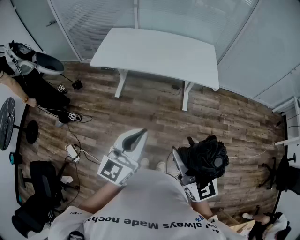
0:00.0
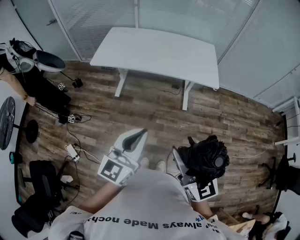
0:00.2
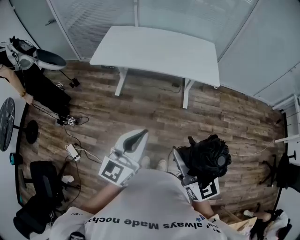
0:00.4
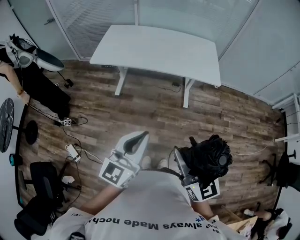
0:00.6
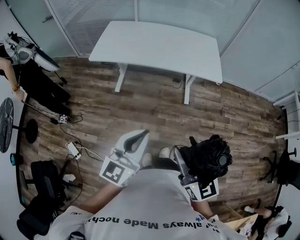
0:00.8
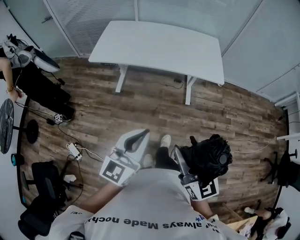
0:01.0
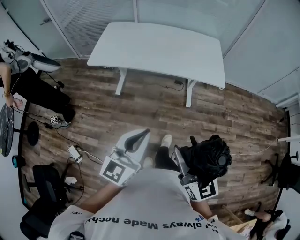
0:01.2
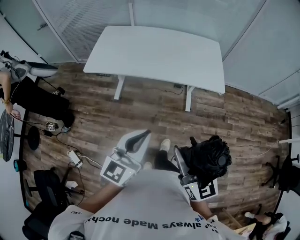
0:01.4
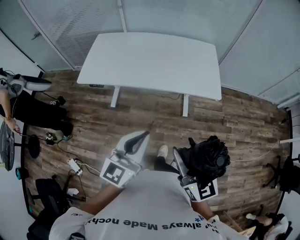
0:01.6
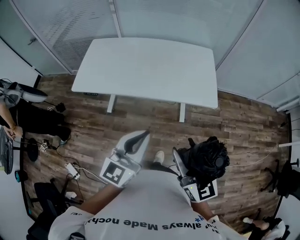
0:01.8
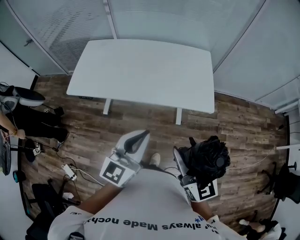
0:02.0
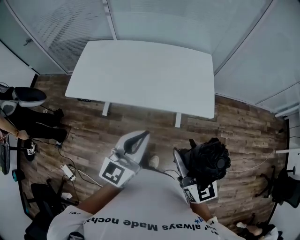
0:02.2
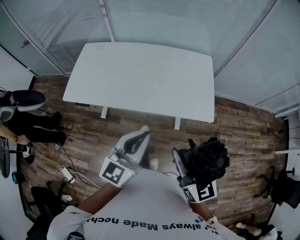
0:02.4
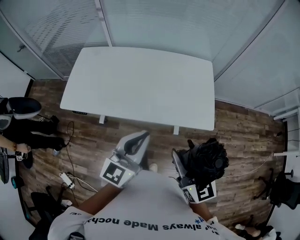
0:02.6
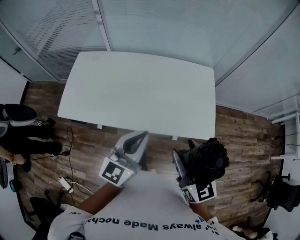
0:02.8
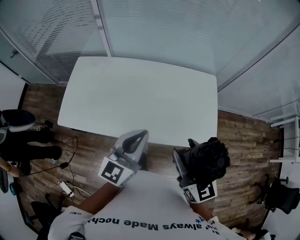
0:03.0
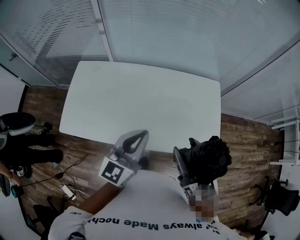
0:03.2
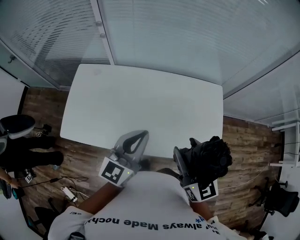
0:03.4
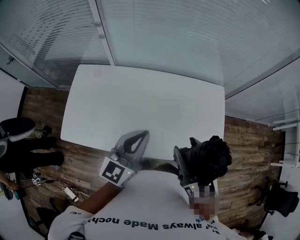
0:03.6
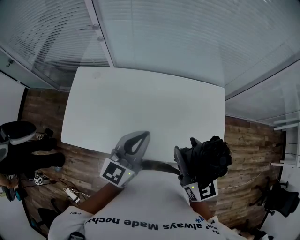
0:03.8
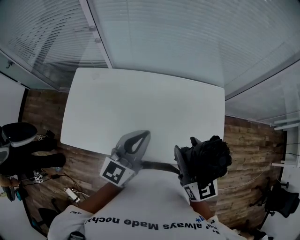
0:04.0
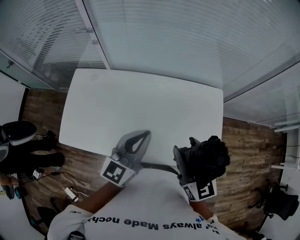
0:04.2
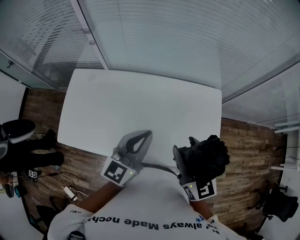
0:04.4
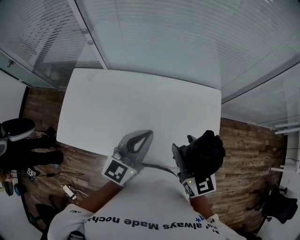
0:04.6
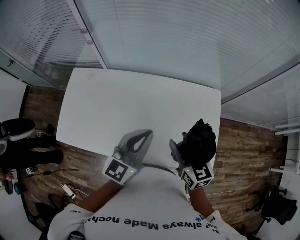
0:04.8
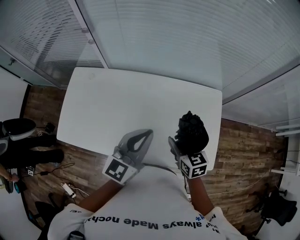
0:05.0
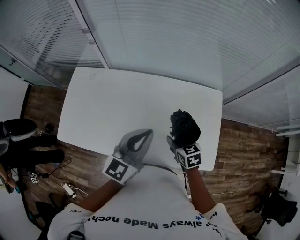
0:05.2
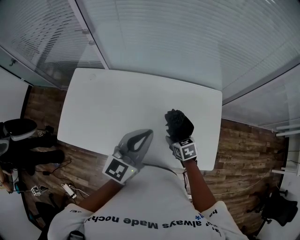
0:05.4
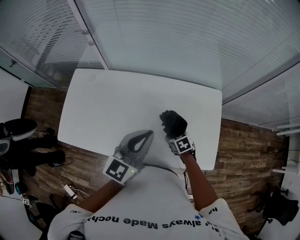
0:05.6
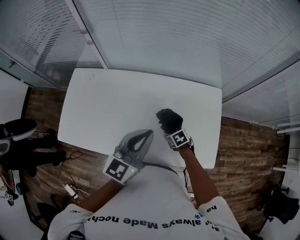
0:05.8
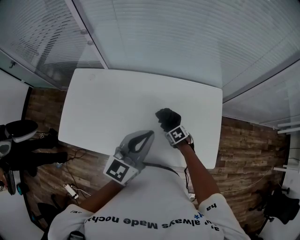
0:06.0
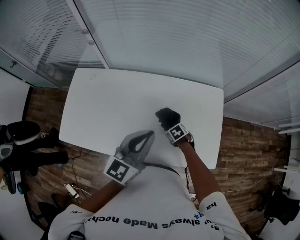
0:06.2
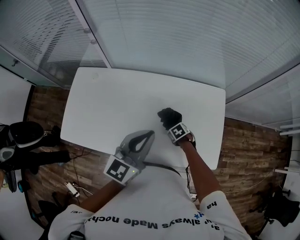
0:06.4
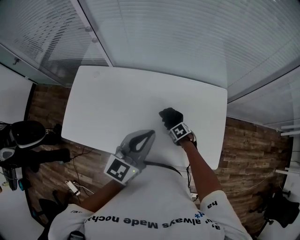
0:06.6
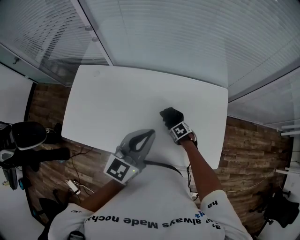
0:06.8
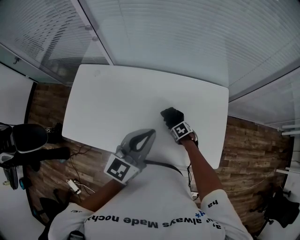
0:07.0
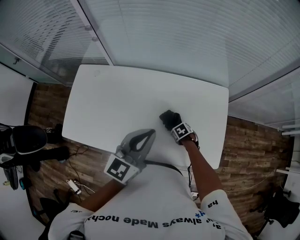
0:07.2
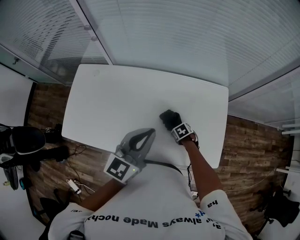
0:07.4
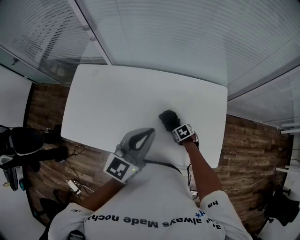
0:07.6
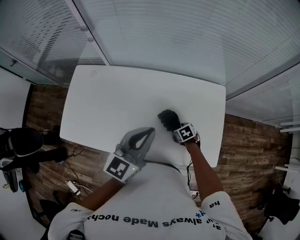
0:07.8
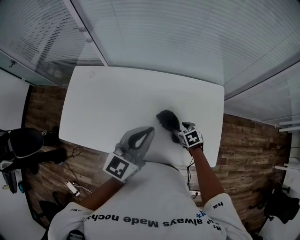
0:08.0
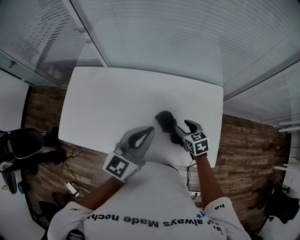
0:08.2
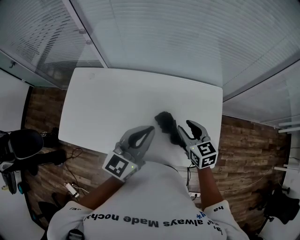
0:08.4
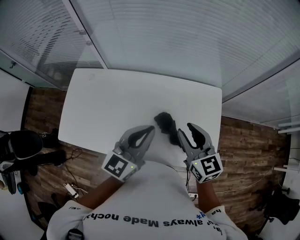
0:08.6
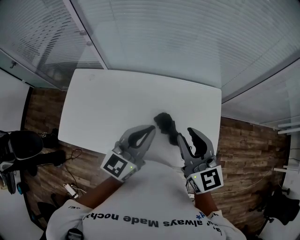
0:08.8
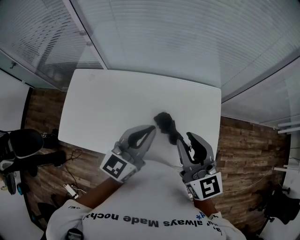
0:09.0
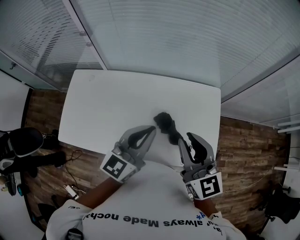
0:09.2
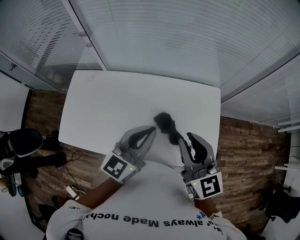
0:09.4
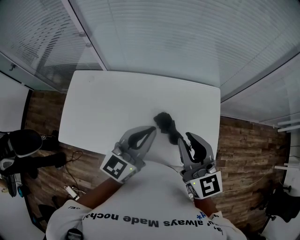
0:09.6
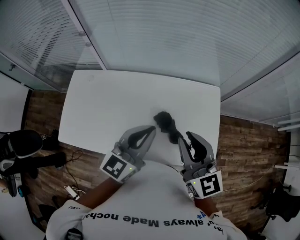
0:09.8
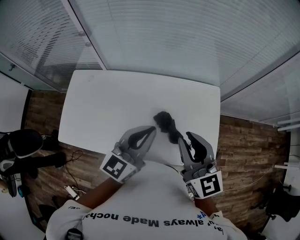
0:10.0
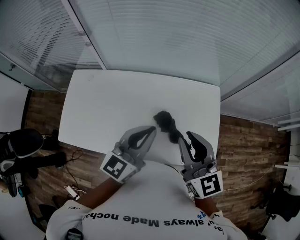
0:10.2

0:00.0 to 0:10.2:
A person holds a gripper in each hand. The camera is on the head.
0:00.0 to 0:01.4: Both grippers move forward, some 15 cm.
0:01.4 to 0:03.0: Both grippers are carried forward, roughly 50 cm.
0:03.0 to 0:04.4: Both grippers move forward, about 20 cm.
0:04.4 to 0:05.8: The right gripper moves downward, some 35 cm, and tilts its fingers roughly 60 degrees downward.
0:05.8 to 0:07.2: The right gripper is displaced downward by some 5 cm.
0:07.2 to 0:08.8: The right gripper is displaced upward by some 40 cm, tilts its fingers some 70 degrees upward, and closes its fingers.
0:08.8 to 0:10.2: The grippers stay close to where they were, moving slightly.

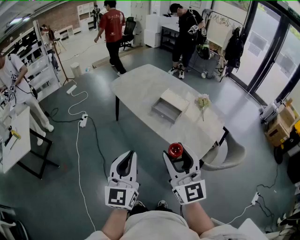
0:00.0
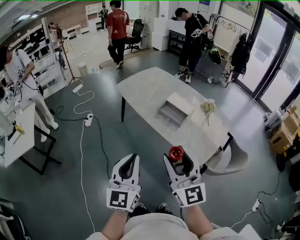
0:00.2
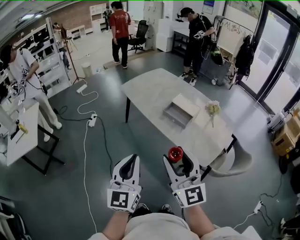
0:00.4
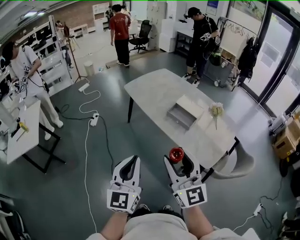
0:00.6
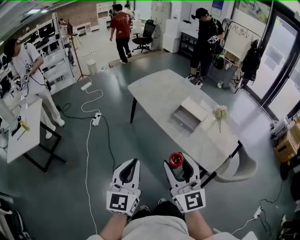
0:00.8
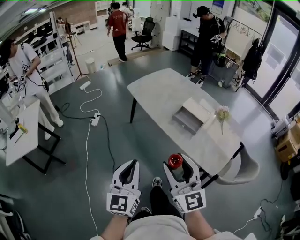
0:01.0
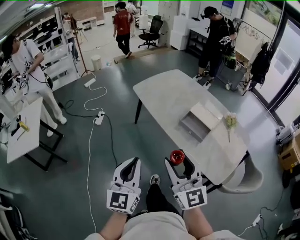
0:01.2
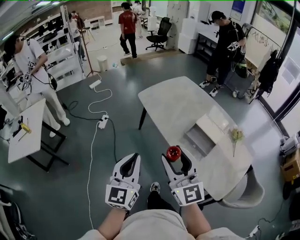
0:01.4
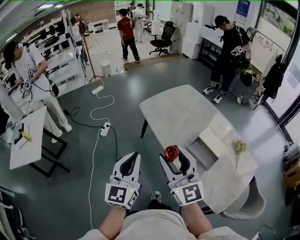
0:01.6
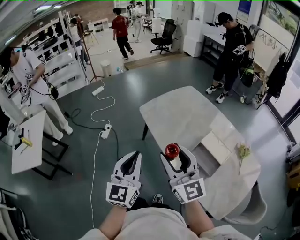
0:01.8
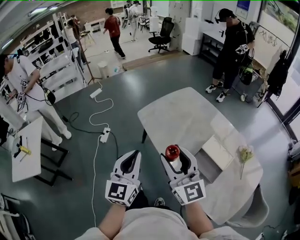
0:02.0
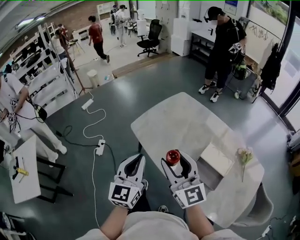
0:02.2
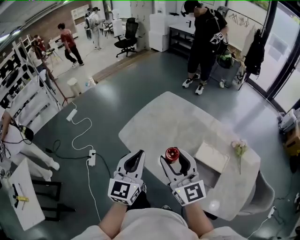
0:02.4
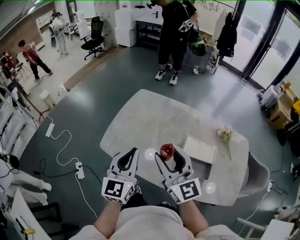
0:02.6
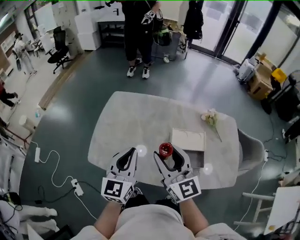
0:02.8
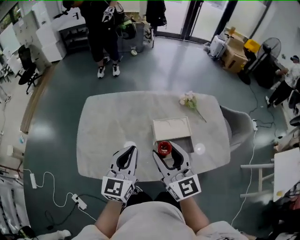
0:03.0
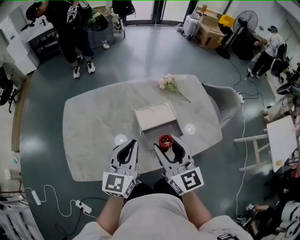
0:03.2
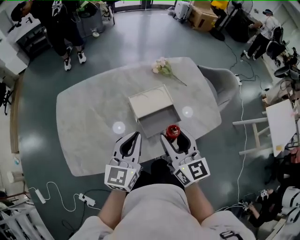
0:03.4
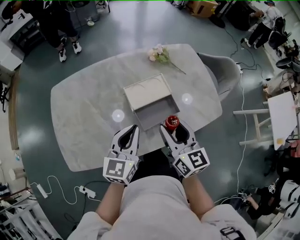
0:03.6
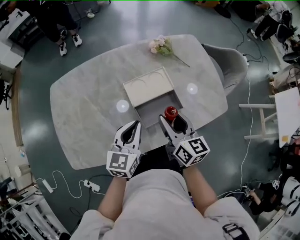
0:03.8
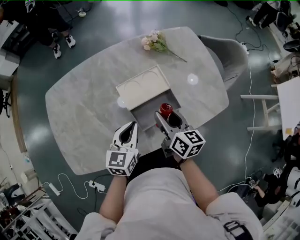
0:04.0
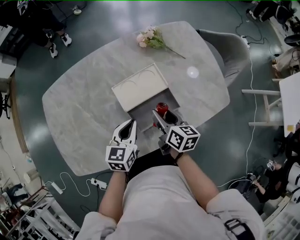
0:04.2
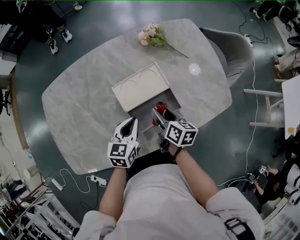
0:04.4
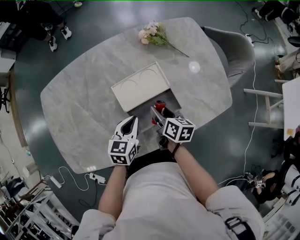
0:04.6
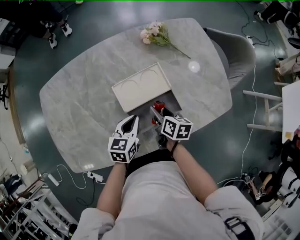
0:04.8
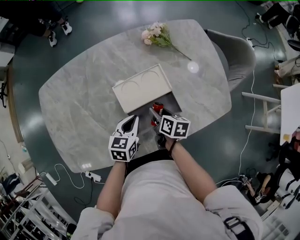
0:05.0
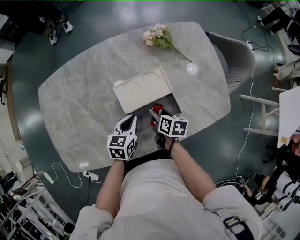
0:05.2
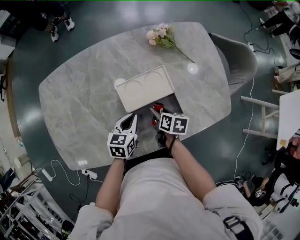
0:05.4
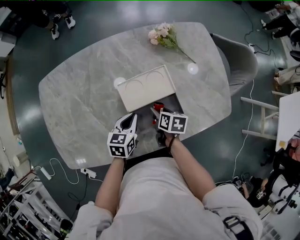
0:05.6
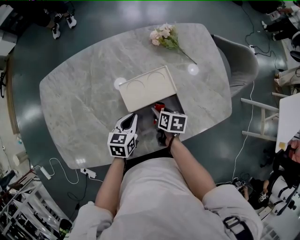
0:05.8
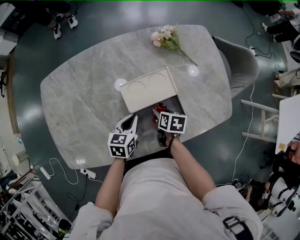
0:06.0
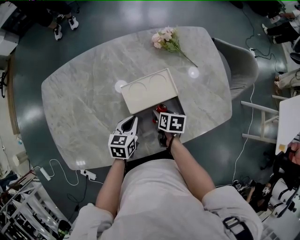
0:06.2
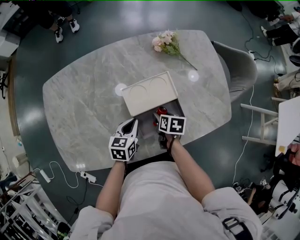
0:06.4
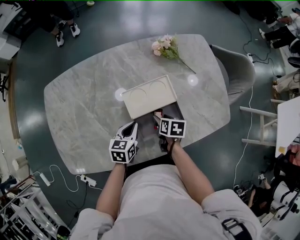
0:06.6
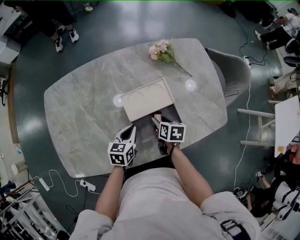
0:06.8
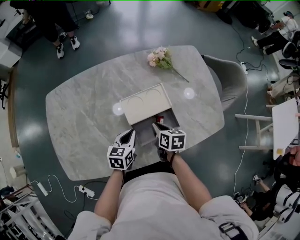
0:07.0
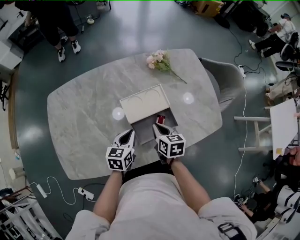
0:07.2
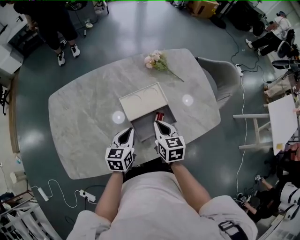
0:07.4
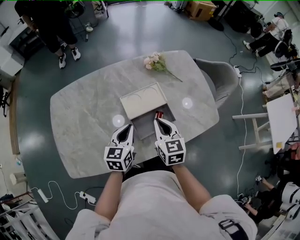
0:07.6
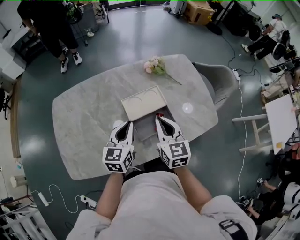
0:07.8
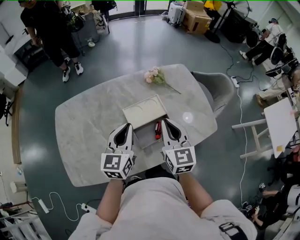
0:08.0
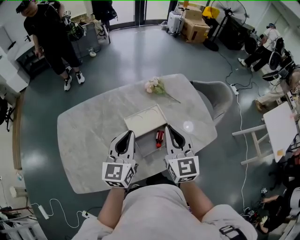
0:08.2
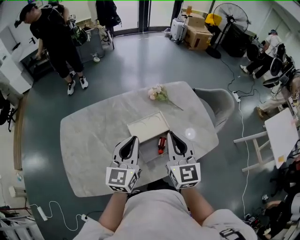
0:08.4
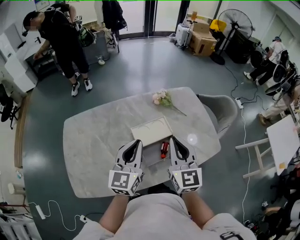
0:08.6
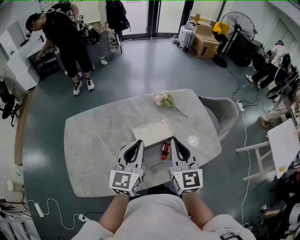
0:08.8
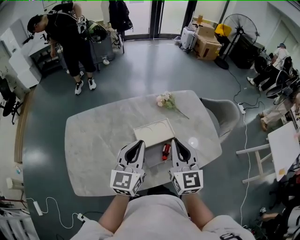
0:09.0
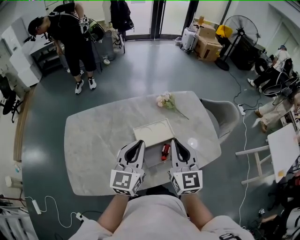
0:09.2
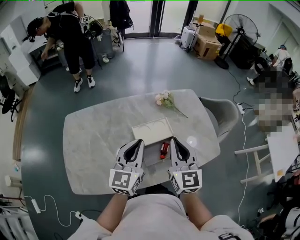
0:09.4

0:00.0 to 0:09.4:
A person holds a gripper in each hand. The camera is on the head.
0:00.0 to 0:01.6: The grippers both shift forward by approximately 30 cm.
0:01.6 to 0:03.2: The right gripper moves approximately 30 cm, and changes its angle by approximately 70 degrees, while the left gripper changes place by about 40 cm, and changes its angle by some 80 degrees.
0:03.2 to 0:04.8: Both grippers travel together downward, some 30 cm. The right gripper points its fingers some 40 degrees further downward. Meanwhile the left gripper angles its fingers downward, by about 30 degrees.
0:04.8 to 0:06.2: The right gripper ends up approximately 5 cm from where it was, and rotates roughly 20 degrees.
0:06.2 to 0:07.8: Both grippers move upward, some 25 cm. The right gripper points its fingers about 40 degrees further upward, and closes its fingers. Meanwhile the left gripper changes its angle by roughly 30 degrees.
0:07.8 to 0:09.4: Both grippers move upward, approximately 10 cm.

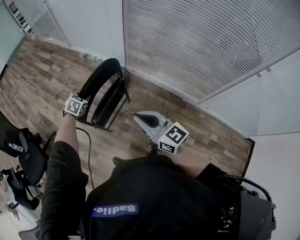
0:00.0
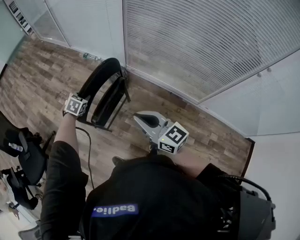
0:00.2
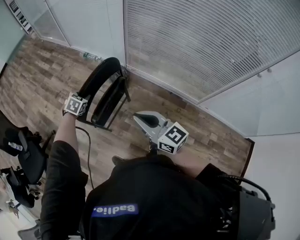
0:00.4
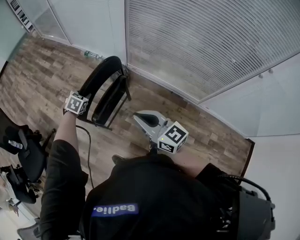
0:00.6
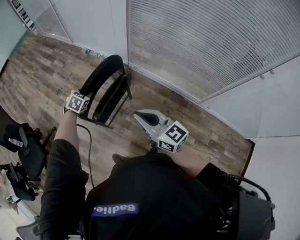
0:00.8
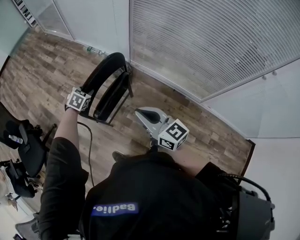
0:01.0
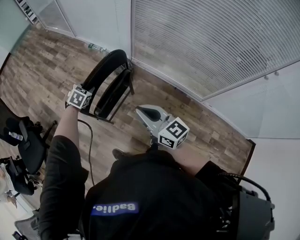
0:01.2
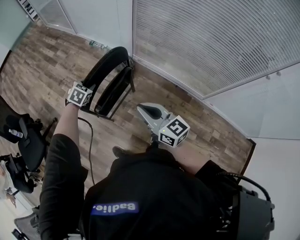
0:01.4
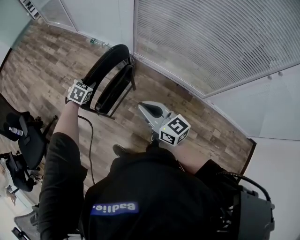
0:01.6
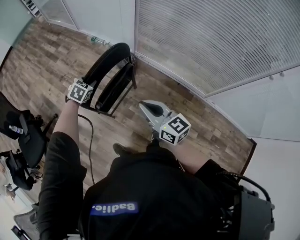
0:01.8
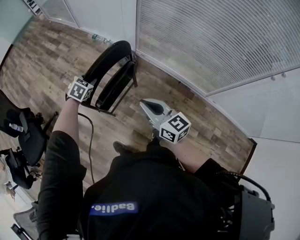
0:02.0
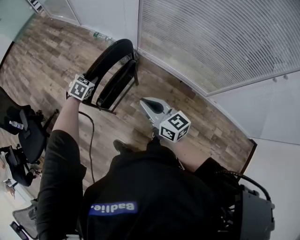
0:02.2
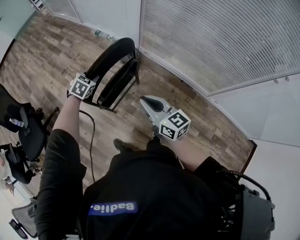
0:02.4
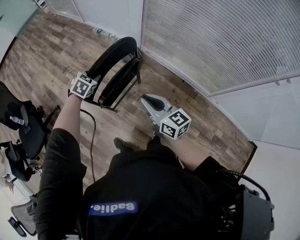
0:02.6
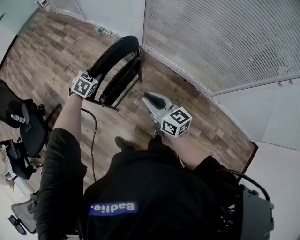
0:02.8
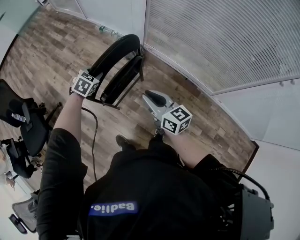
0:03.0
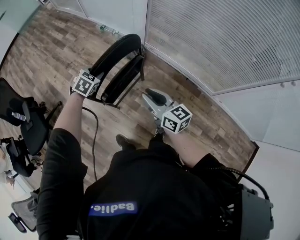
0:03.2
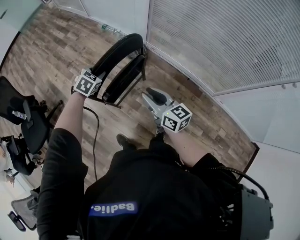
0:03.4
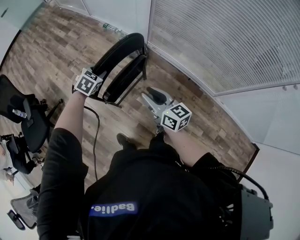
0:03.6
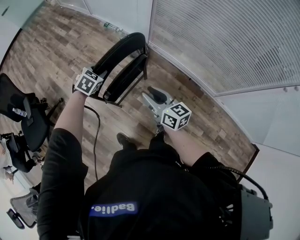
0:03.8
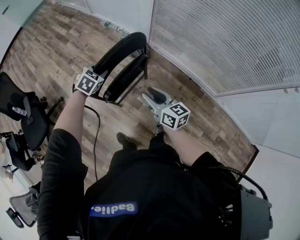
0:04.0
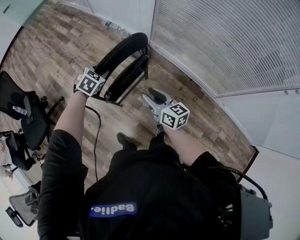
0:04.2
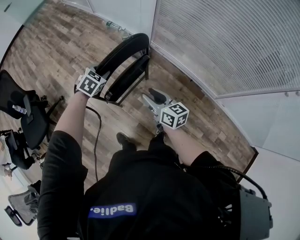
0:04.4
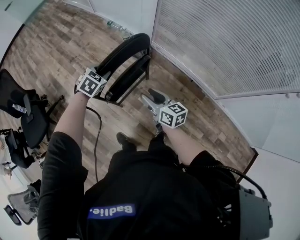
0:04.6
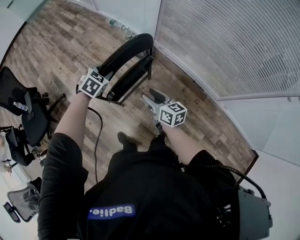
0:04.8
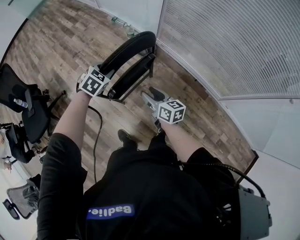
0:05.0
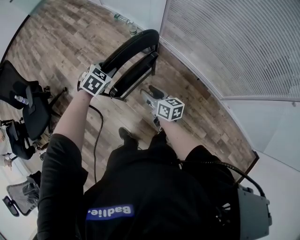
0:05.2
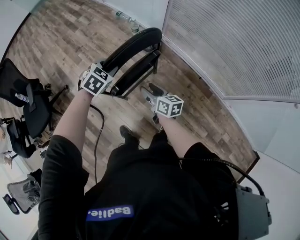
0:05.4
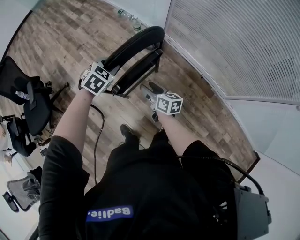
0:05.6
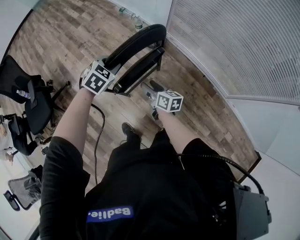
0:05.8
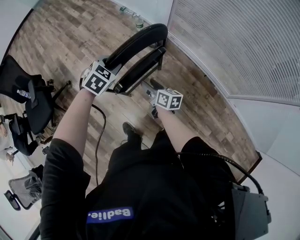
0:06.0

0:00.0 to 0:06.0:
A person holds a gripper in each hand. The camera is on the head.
0:00.0 to 0:01.6: The grippers move only a little.
0:01.6 to 0:03.0: The right gripper moves downward, about 5 cm.
0:03.0 to 0:04.4: The right gripper moves downward, approximately 5 cm.
0:04.4 to 0:06.0: The right gripper travels downward and forward by some 15 cm.
